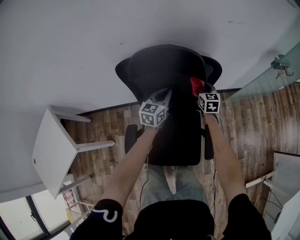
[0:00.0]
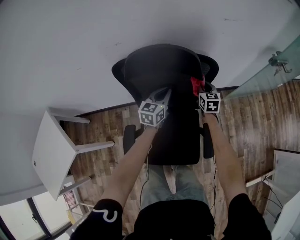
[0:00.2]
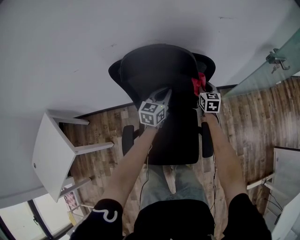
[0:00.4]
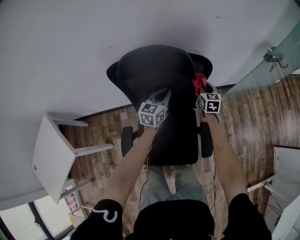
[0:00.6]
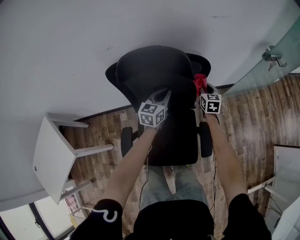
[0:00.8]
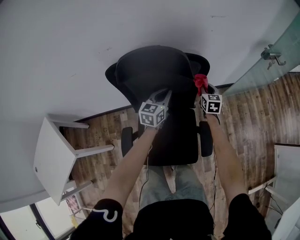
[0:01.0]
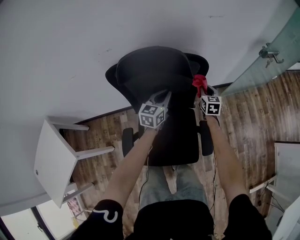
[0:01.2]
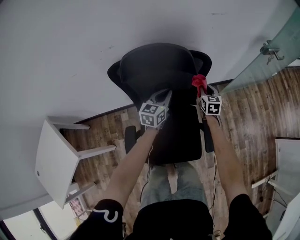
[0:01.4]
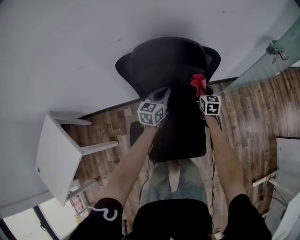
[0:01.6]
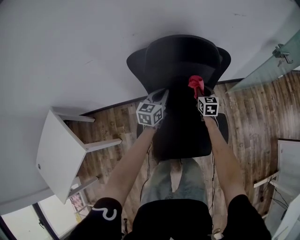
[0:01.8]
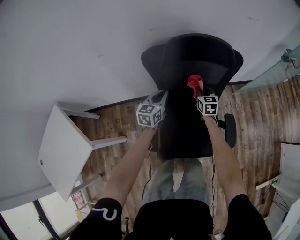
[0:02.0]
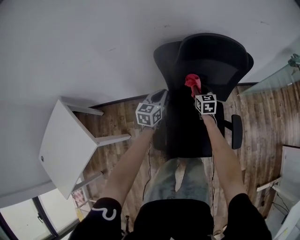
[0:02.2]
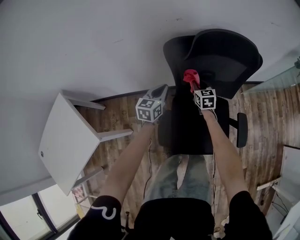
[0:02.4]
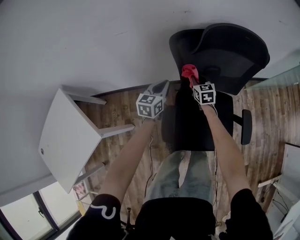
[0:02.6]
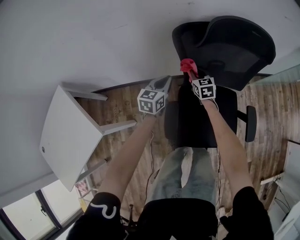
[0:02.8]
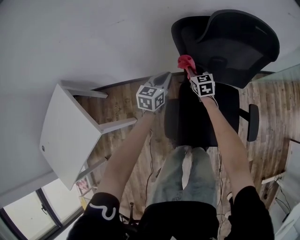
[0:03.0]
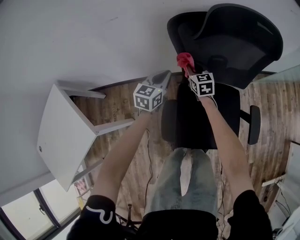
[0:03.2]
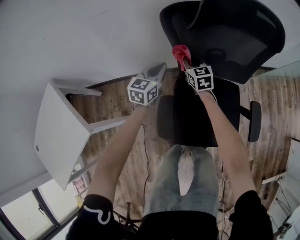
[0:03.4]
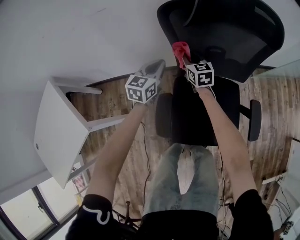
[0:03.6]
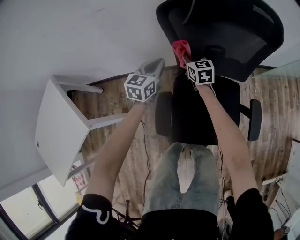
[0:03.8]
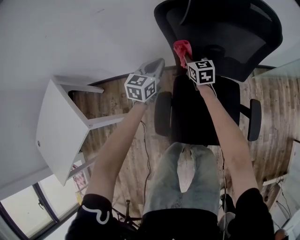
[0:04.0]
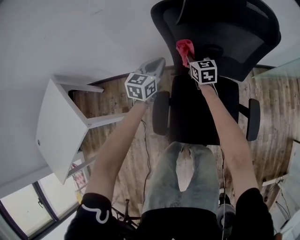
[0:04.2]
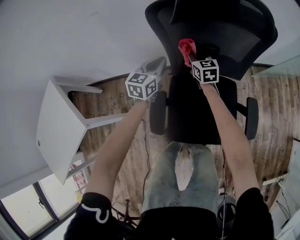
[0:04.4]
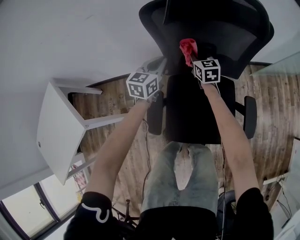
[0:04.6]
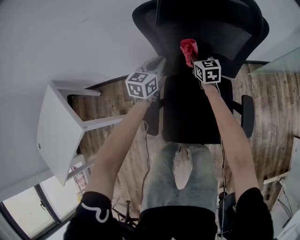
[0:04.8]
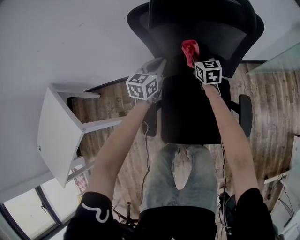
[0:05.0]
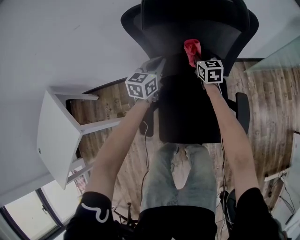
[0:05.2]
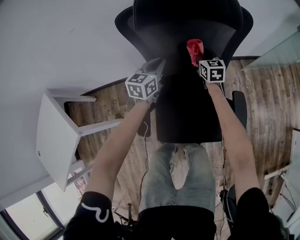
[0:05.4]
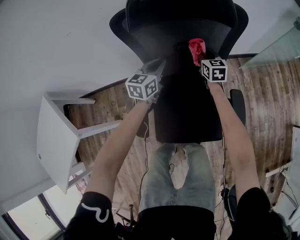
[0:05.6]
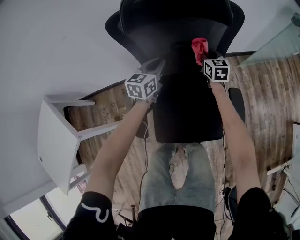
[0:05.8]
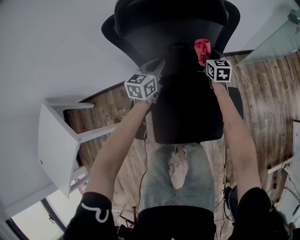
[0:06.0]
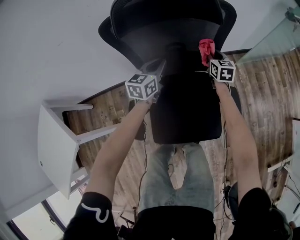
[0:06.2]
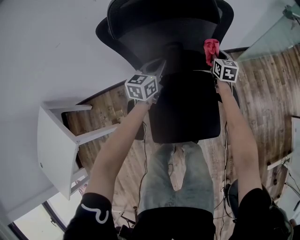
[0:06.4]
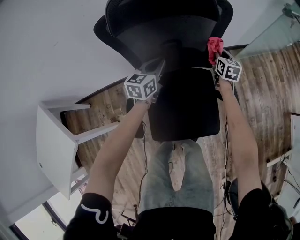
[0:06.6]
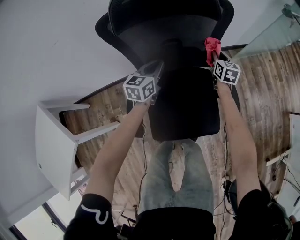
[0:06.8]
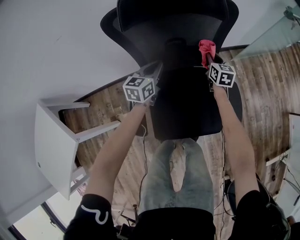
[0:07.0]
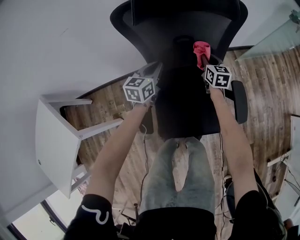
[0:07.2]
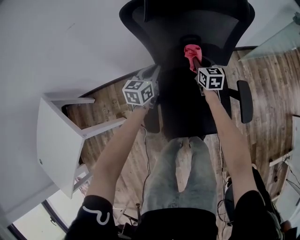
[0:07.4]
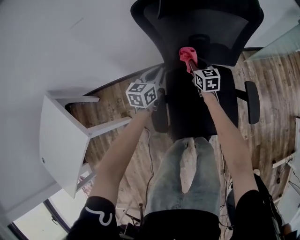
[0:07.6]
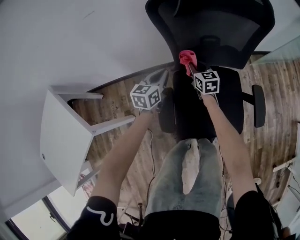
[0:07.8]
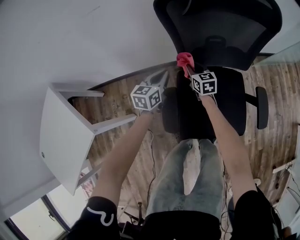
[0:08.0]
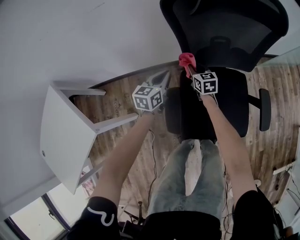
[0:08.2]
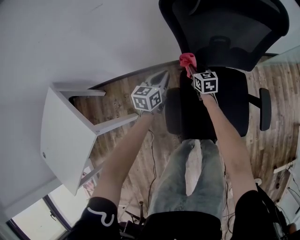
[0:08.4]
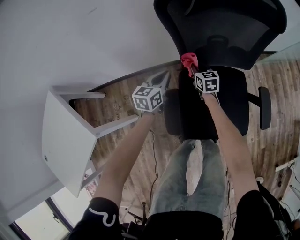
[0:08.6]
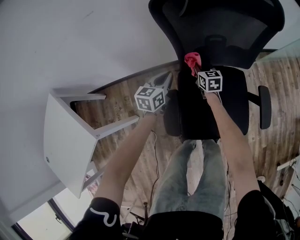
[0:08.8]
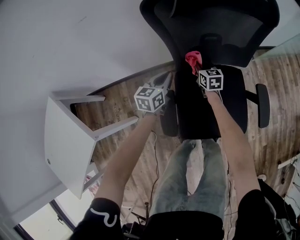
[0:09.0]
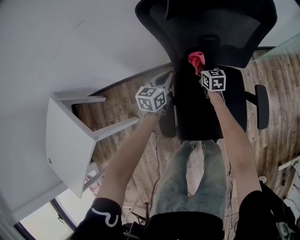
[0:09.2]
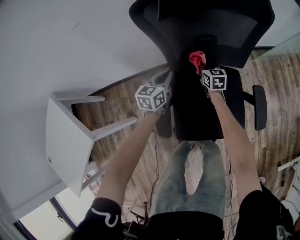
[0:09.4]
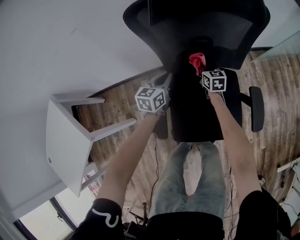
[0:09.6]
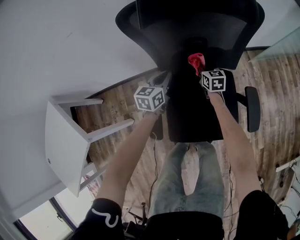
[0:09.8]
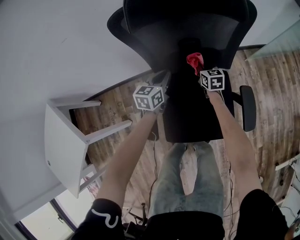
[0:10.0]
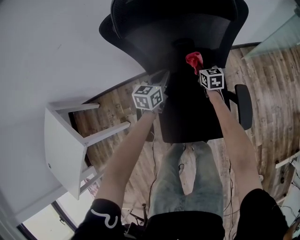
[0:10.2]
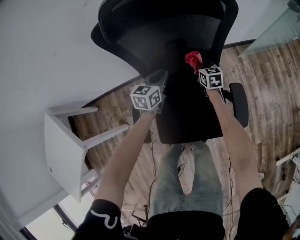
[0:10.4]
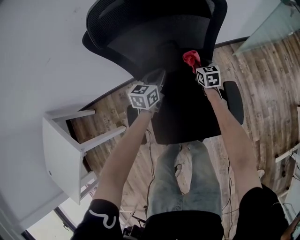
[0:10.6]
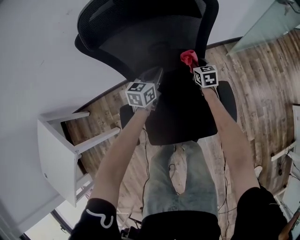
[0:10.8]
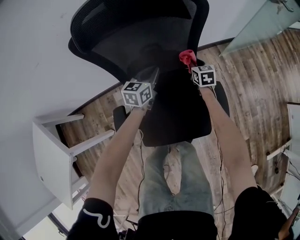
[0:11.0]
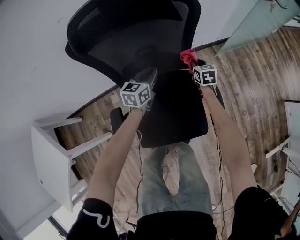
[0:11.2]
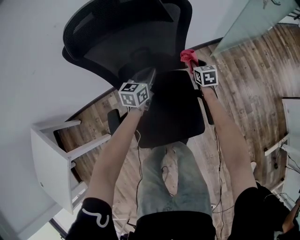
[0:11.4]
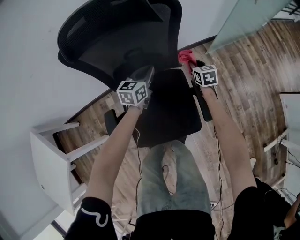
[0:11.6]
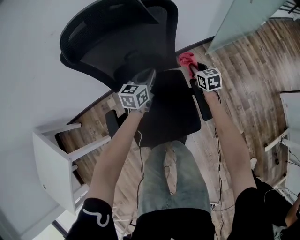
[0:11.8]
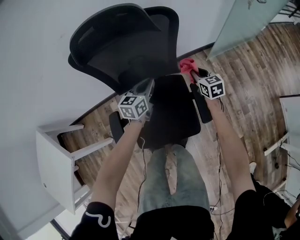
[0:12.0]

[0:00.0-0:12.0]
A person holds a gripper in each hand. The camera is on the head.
0:00.0 to 0:01.6: The right gripper is displaced backward by approximately 5 cm, and moves approximately 10 cm to the right and comes back.
0:01.6 to 0:03.0: Both grippers move to the left, roughly 30 cm. The right gripper rotates approximately 20 degrees.
0:03.0 to 0:04.4: The grippers both shift to the right by about 5 cm.
0:04.4 to 0:06.0: The right gripper is displaced to the right by about 25 cm; the left gripper is displaced to the right by some 15 cm.
0:06.0 to 0:07.6: Both grippers move to the left and backward, approximately 20 cm.
0:07.6 to 0:09.0: The right gripper travels downward by some 5 cm, and travels to the left and back again, some 10 cm each way.
0:09.0 to 0:10.4: The two grippers go some 15 cm to the right.
0:10.4 to 0:12.0: Both grippers move to the right and upward, approximately 20 cm.

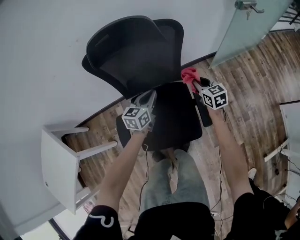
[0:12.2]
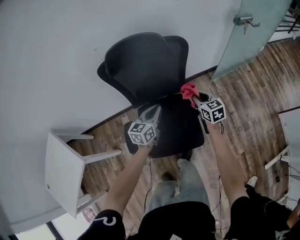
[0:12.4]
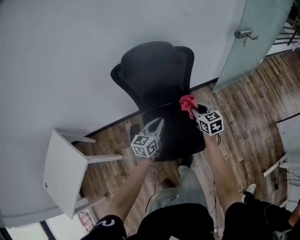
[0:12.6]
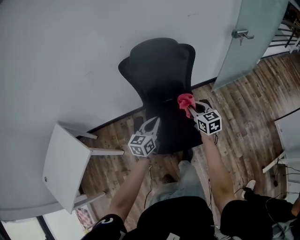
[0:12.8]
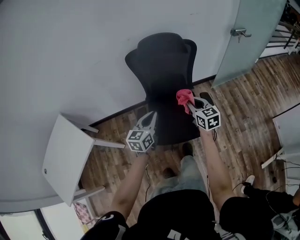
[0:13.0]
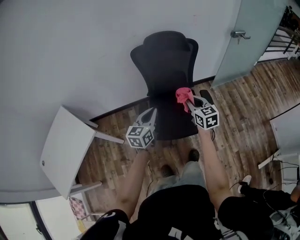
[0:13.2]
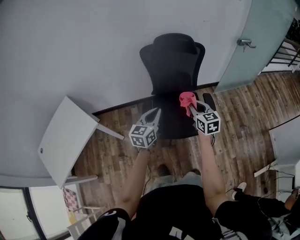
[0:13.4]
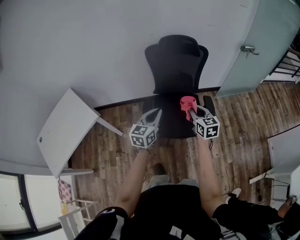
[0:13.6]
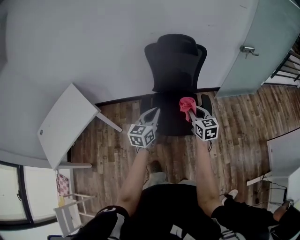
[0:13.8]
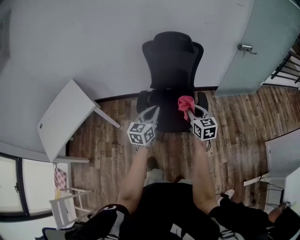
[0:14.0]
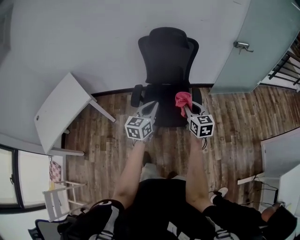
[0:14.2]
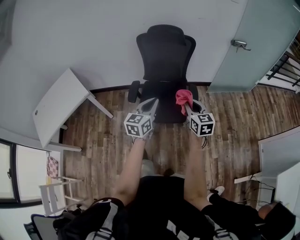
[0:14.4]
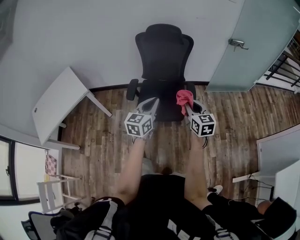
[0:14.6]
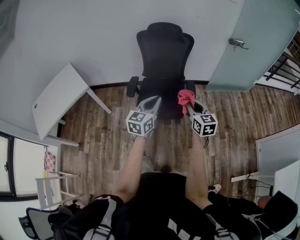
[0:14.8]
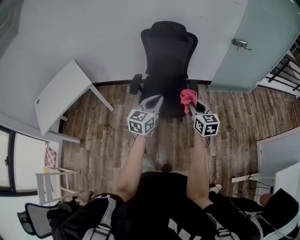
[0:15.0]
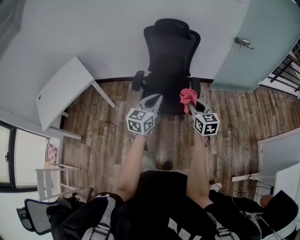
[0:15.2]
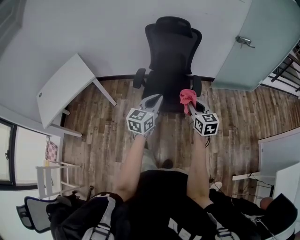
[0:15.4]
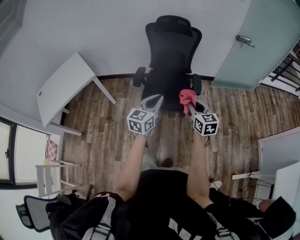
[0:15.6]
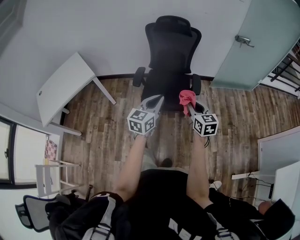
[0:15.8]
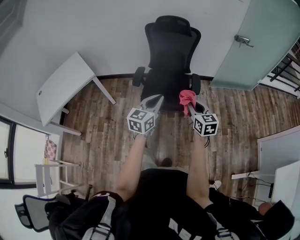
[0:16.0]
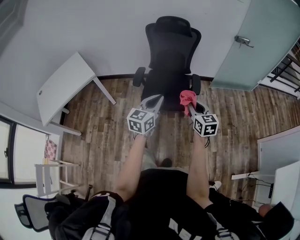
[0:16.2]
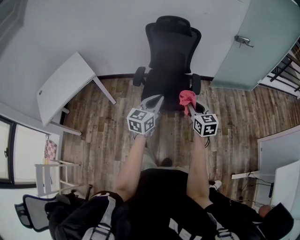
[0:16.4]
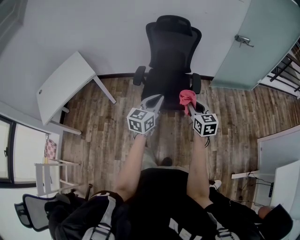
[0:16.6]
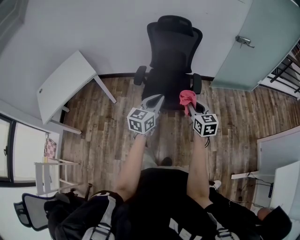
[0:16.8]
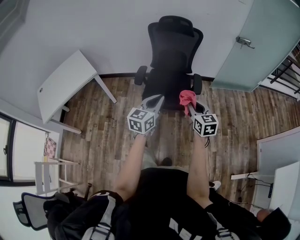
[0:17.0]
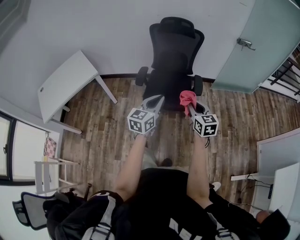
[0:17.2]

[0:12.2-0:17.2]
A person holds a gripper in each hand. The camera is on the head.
0:12.2 to 0:13.8: Both grippers are carried backward, roughly 40 cm. Both grippers move upward, roughly 25 cm. The left gripper changes its angle by some 20 degrees.
0:13.8 to 0:15.6: Both grippers move backward and to the right, approximately 20 cm.
0:15.6 to 0:17.2: The grippers make only small movements.

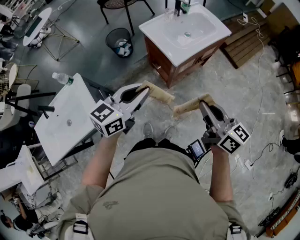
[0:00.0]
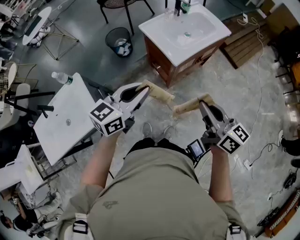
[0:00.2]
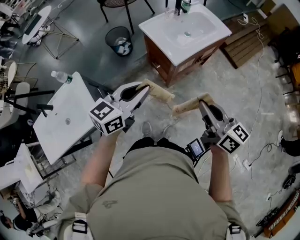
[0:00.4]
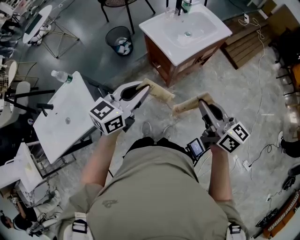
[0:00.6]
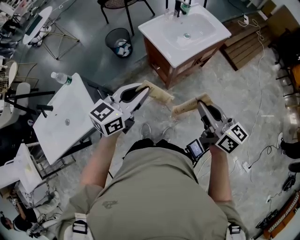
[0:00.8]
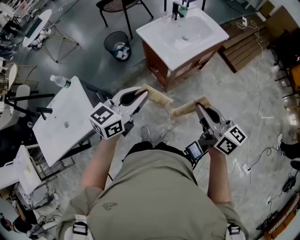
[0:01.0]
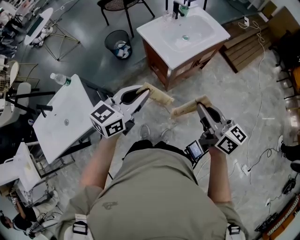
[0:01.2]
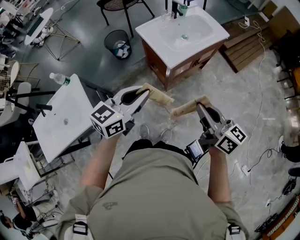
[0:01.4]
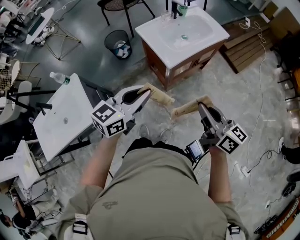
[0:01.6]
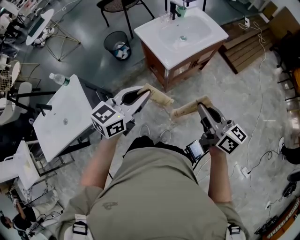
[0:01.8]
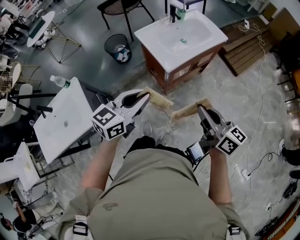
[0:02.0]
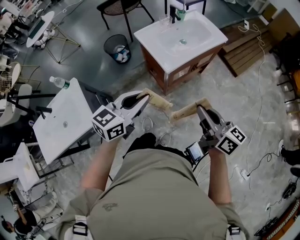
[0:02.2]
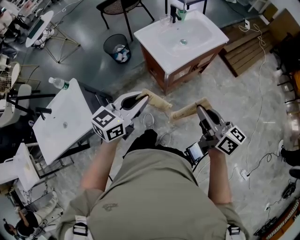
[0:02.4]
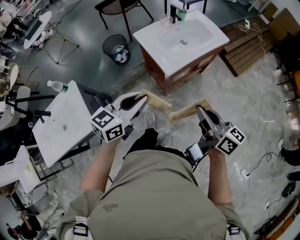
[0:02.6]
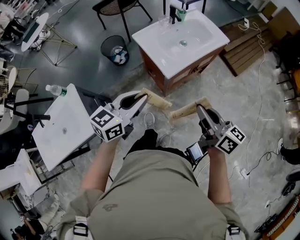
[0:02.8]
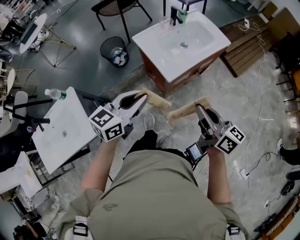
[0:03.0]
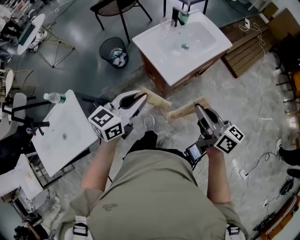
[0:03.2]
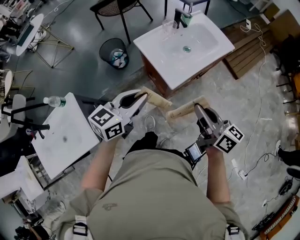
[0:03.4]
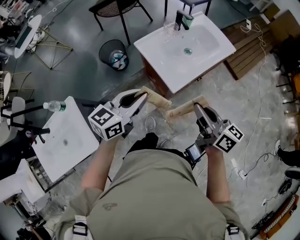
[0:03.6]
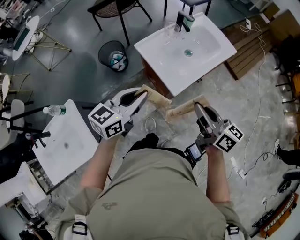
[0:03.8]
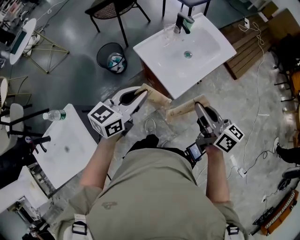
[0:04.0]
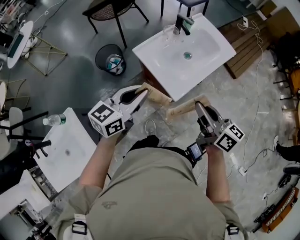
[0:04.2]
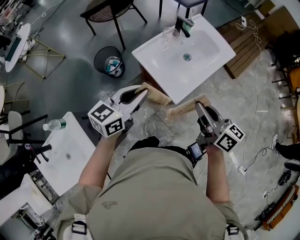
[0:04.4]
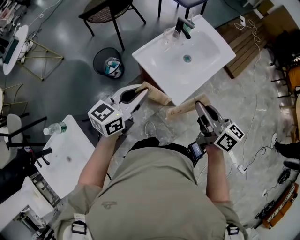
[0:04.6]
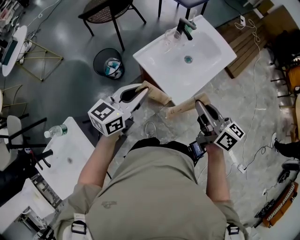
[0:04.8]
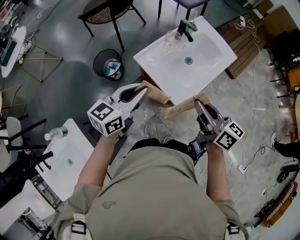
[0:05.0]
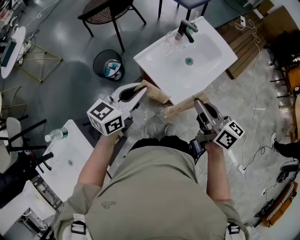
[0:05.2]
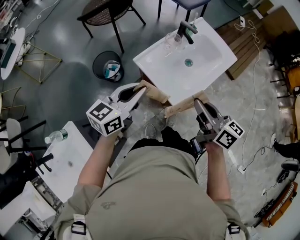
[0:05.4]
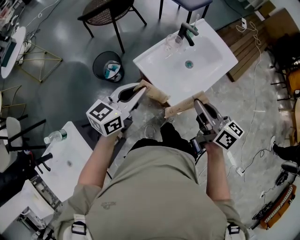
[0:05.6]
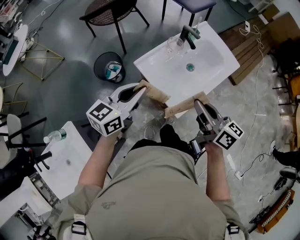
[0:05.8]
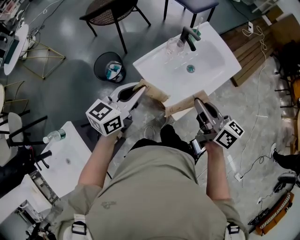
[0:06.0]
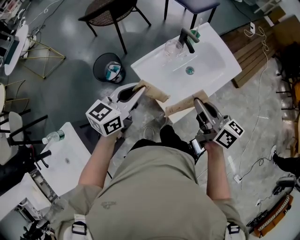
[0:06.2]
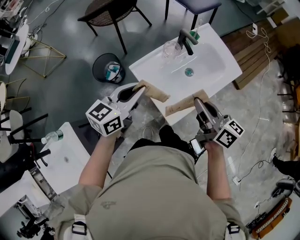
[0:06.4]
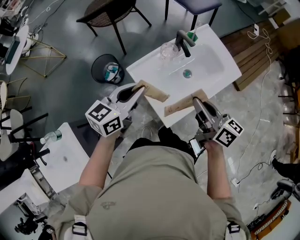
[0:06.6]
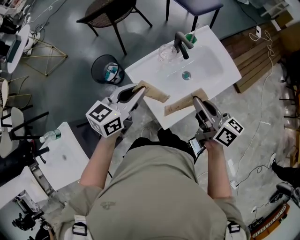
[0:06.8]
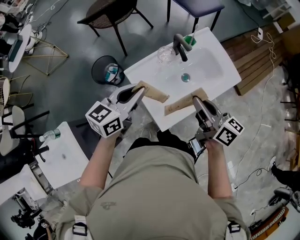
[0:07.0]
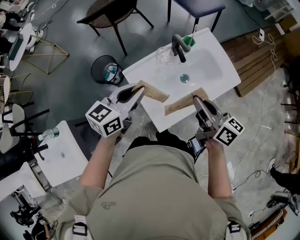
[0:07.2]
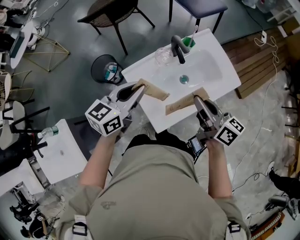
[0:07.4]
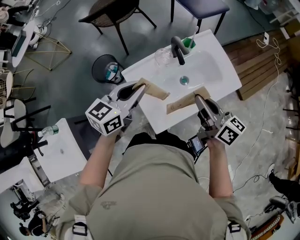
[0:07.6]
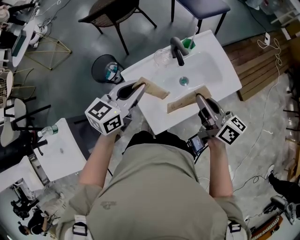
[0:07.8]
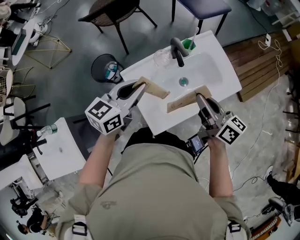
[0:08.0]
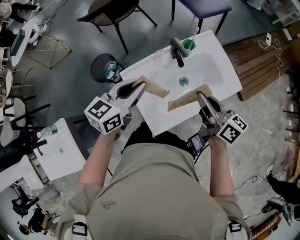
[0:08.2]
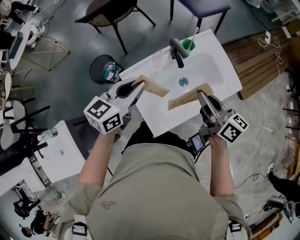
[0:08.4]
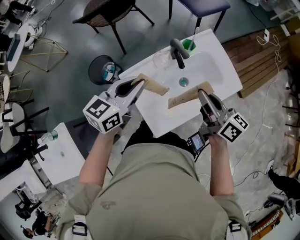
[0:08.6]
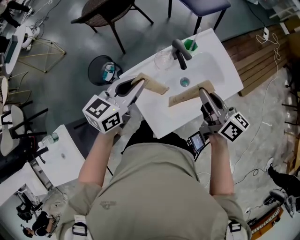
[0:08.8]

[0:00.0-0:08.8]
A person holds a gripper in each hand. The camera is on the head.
0:00.0 to 0:01.4: The grippers move only a little.
0:01.4 to 0:03.0: Both grippers travel together forward, some 10 cm.
0:03.0 to 0:04.4: Both grippers move forward and to the left, approximately 20 cm.
0:04.4 to 0:05.8: The grippers both shift forward by about 10 cm.
0:05.8 to 0:07.4: The right gripper shifts about 15 cm forward and to the right. The left gripper heads to the right and forward, covering some 15 cm.
0:07.4 to 0:08.8: Both grippers move forward, roughly 5 cm.
